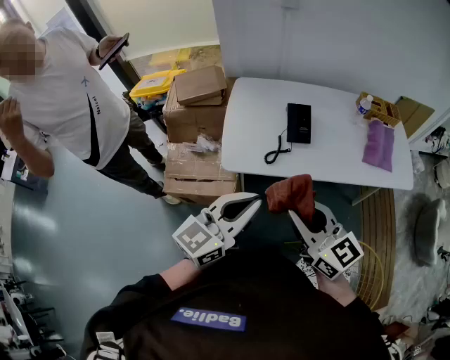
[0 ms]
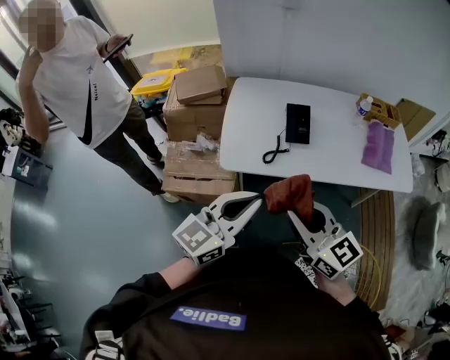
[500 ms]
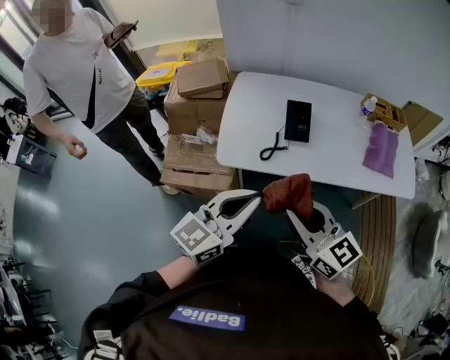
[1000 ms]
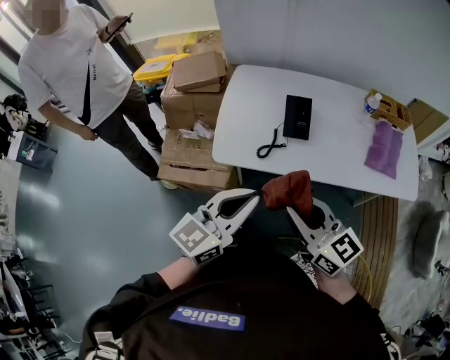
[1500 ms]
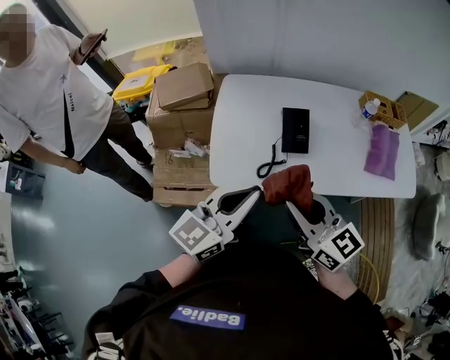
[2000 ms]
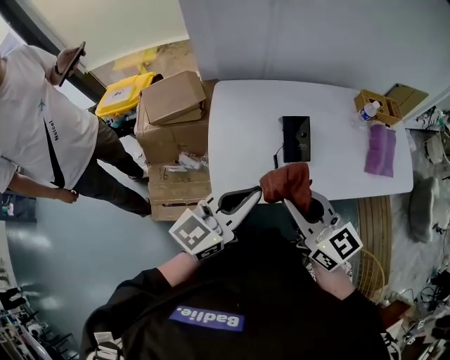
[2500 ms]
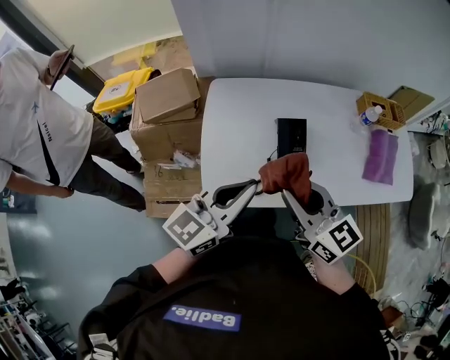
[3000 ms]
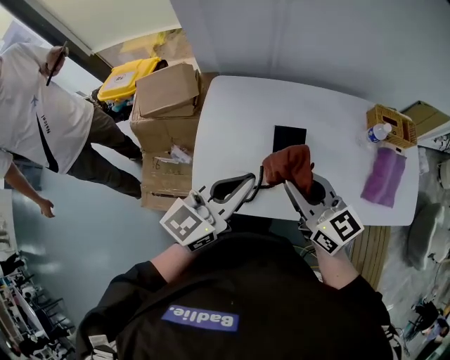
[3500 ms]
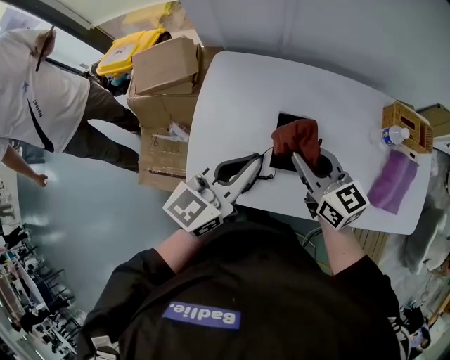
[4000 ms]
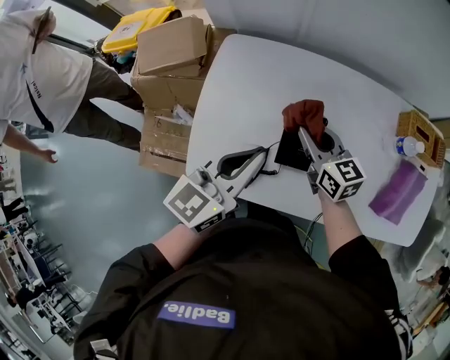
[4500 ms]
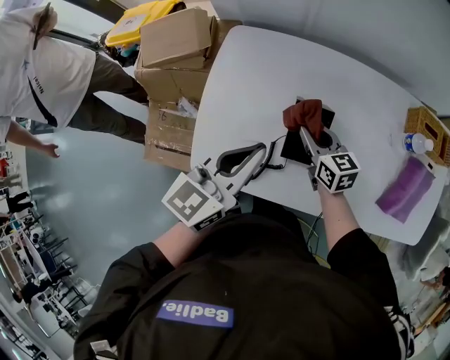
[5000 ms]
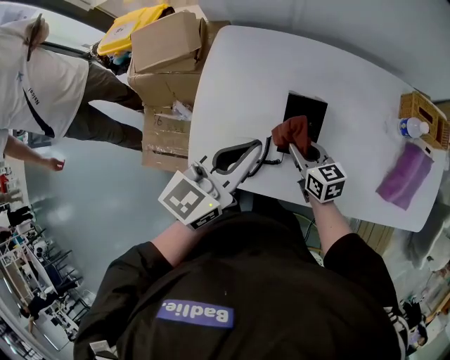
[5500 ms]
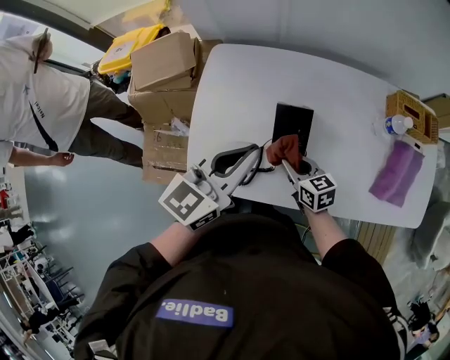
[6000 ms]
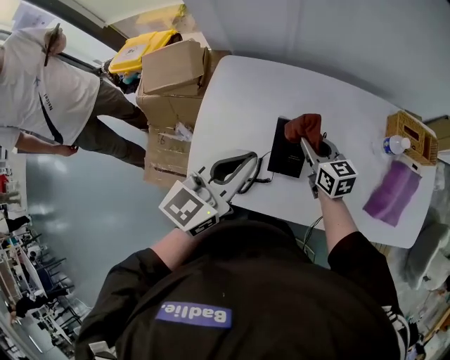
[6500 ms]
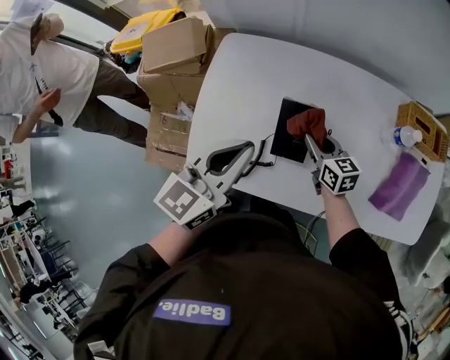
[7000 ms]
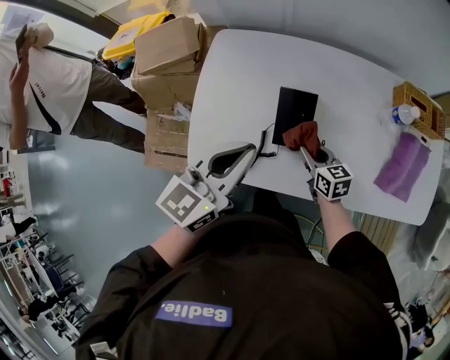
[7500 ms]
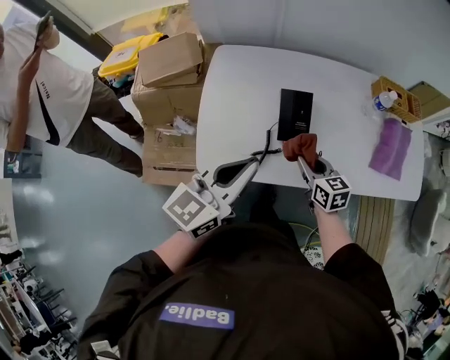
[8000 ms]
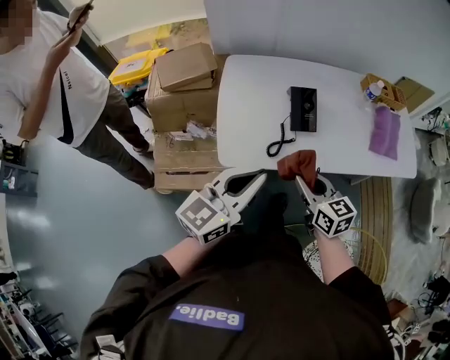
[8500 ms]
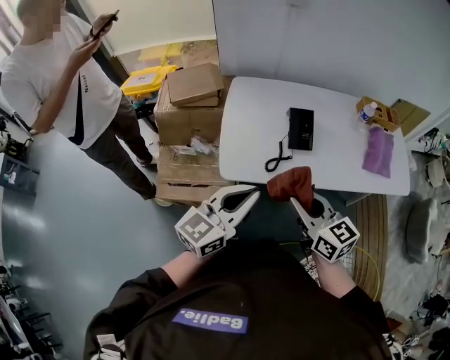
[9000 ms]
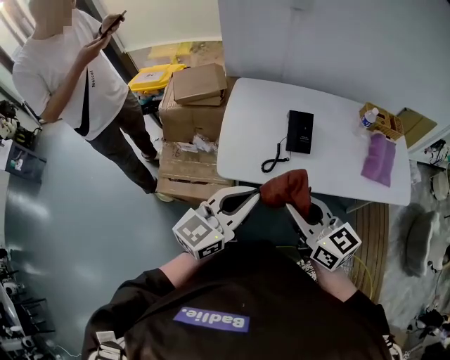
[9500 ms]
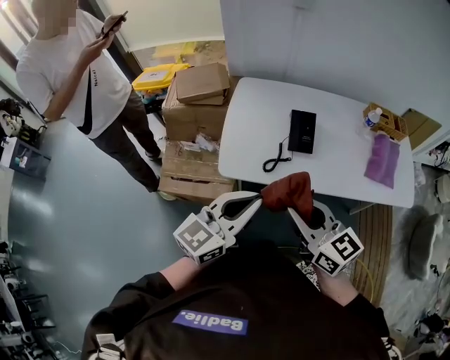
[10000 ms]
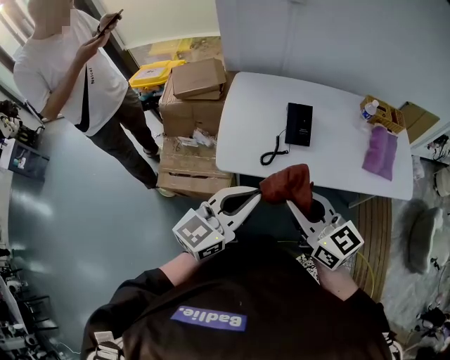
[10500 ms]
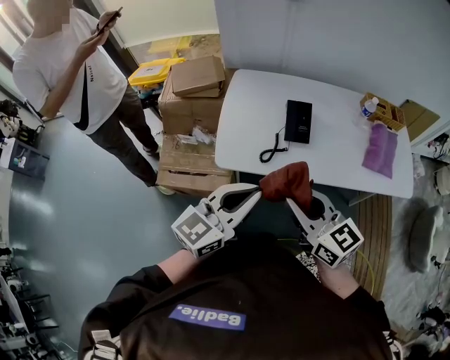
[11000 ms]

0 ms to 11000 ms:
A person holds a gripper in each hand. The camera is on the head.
0 ms to 2000 ms: Both grippers move forward, roughly 15 cm.
2000 ms to 3500 ms: The grippers both shift forward by approximately 20 cm.
3500 ms to 5500 ms: The right gripper shifts some 25 cm downward, and changes its angle by approximately 20 degrees. The left gripper moves downward and forward, roughly 10 cm.
5500 ms to 7500 ms: The right gripper travels to the right by roughly 5 cm, and reaches approximately 10 cm forward, then returns.
7500 ms to 9000 ms: The left gripper heads backward and to the left, covering roughly 25 cm. Meanwhile the right gripper heads backward, upward and to the left, covering roughly 40 cm, and turns by some 20 degrees.
9000 ms to 11000 ms: The left gripper travels to the right by some 5 cm; the right gripper changes place by roughly 5 cm.

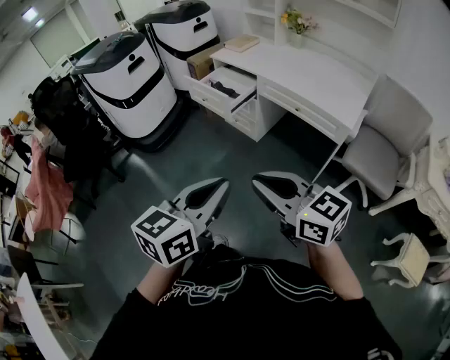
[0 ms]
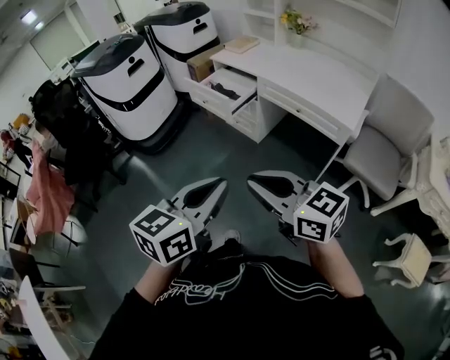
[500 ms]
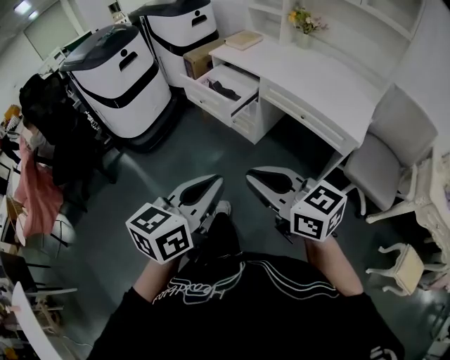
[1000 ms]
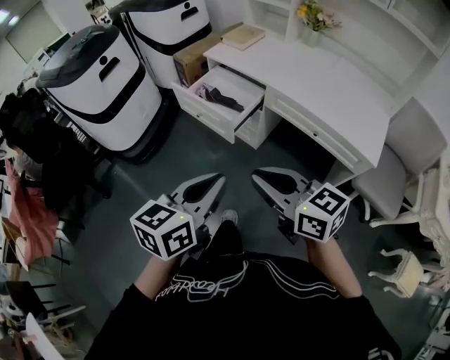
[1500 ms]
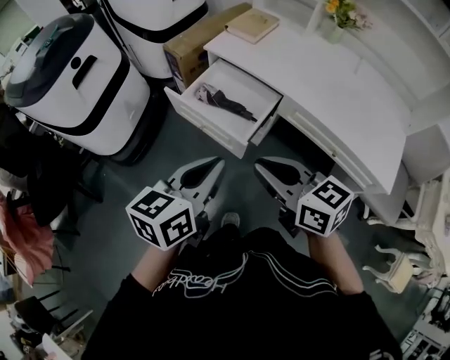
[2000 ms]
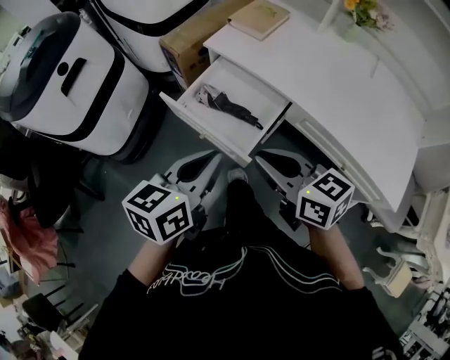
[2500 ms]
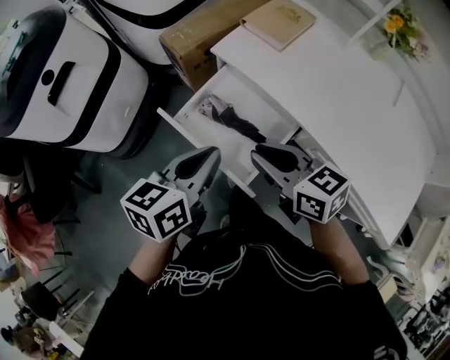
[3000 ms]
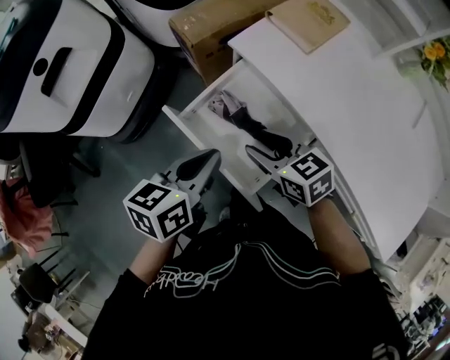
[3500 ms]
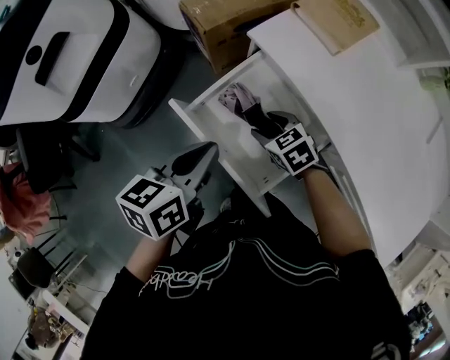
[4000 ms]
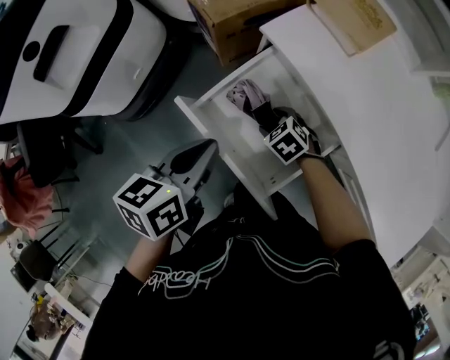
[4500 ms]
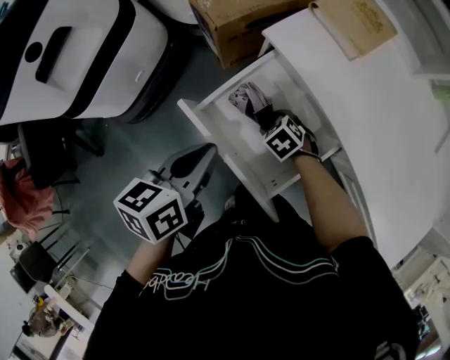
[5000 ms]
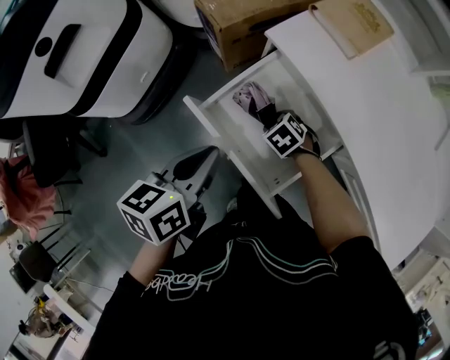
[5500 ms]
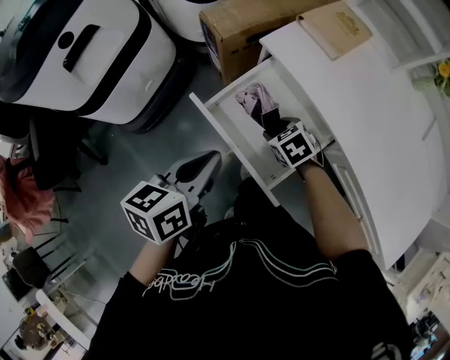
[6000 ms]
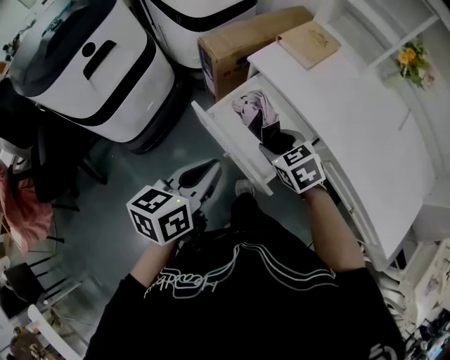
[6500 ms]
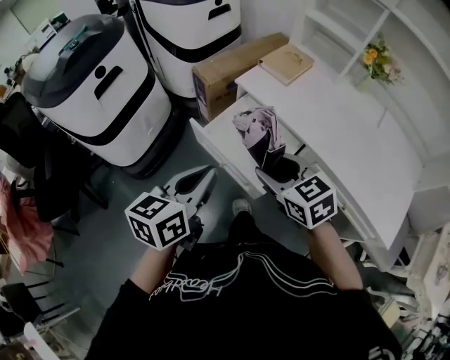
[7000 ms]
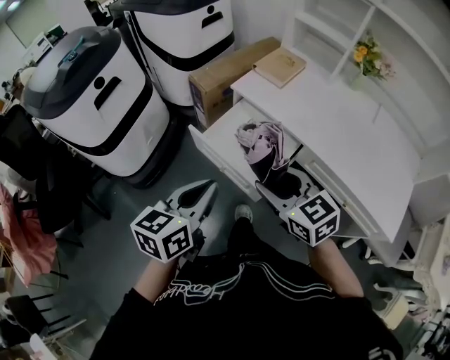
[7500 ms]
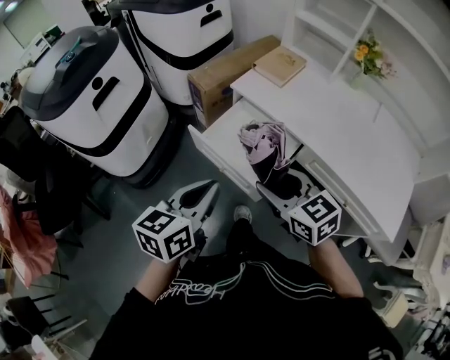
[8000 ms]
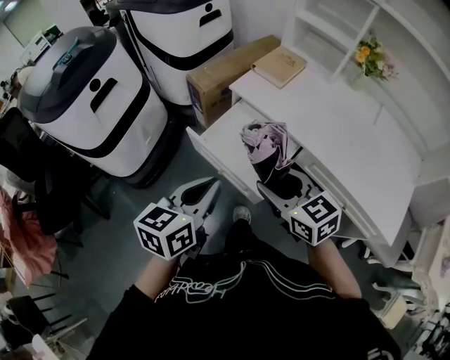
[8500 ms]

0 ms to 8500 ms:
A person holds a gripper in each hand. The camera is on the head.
0 ms to 2000 ms: Both grippers are carried forward, roughly 60 cm.
2000 ms to 4000 ms: Both grippers move forward and downward, about 40 cm. The right gripper angles its fingers downward, by approximately 40 degrees, and opens up. Meanwhile the left gripper changes its angle by roughly 20 degrees.
4000 ms to 6500 ms: The left gripper is displaced backward and upward by approximately 15 cm. The right gripper goes roughly 20 cm upward and backward.
6500 ms to 8500 ms: The left gripper goes some 10 cm upward and backward, while the right gripper goes about 20 cm upward and backward, and swivels approximately 30 degrees.

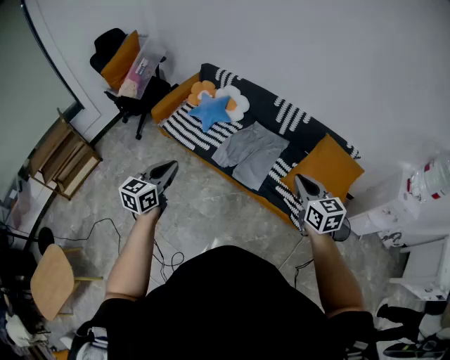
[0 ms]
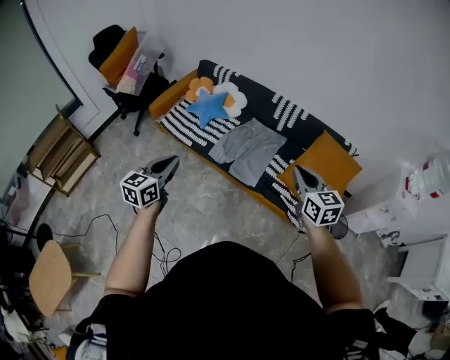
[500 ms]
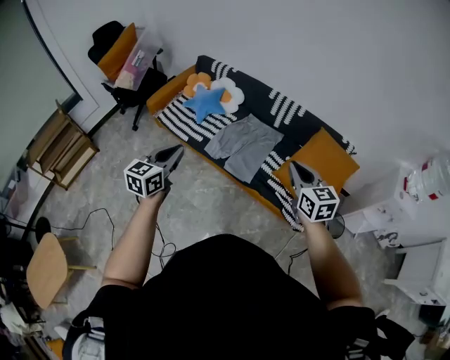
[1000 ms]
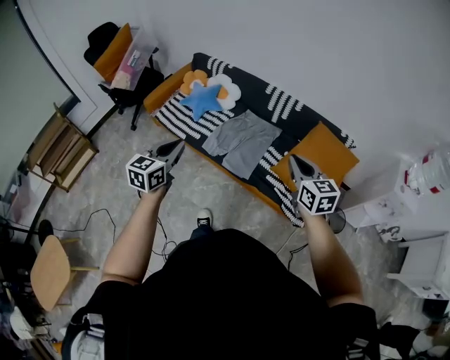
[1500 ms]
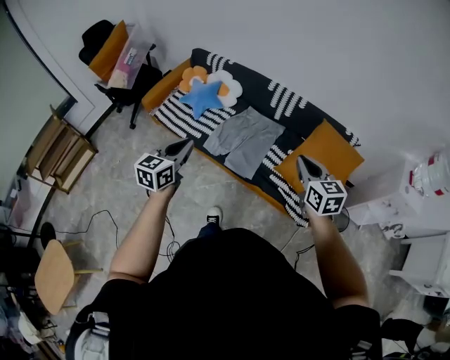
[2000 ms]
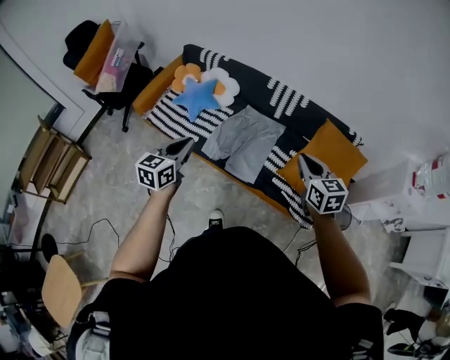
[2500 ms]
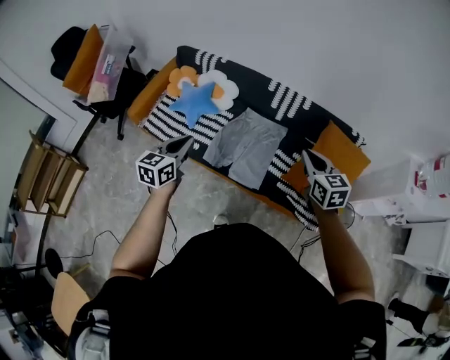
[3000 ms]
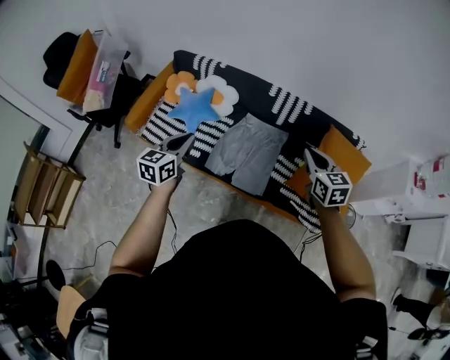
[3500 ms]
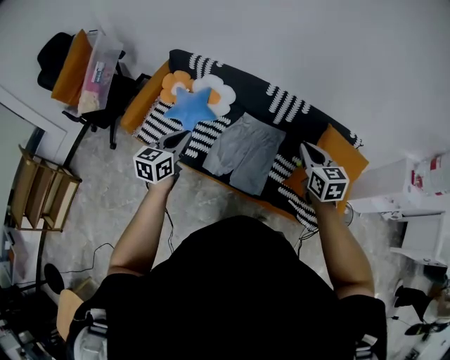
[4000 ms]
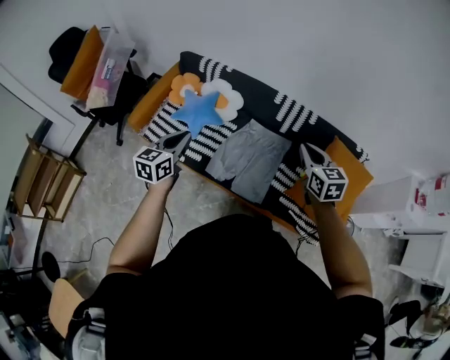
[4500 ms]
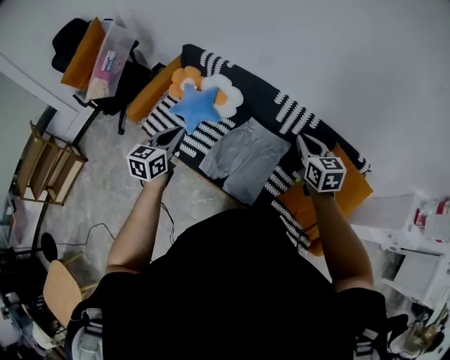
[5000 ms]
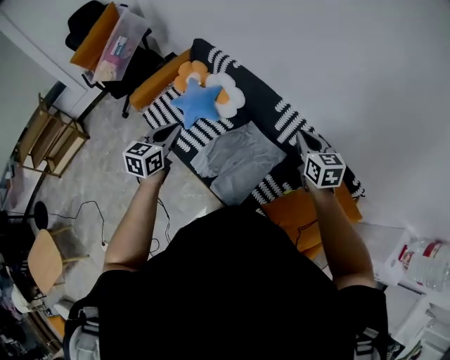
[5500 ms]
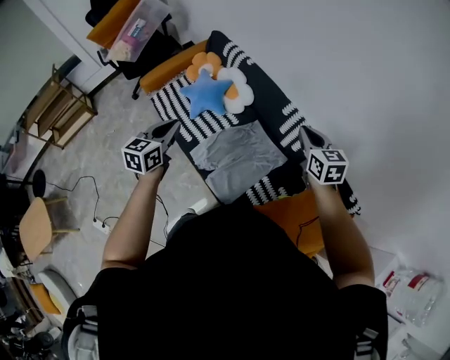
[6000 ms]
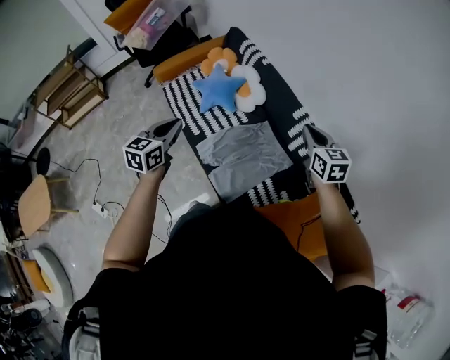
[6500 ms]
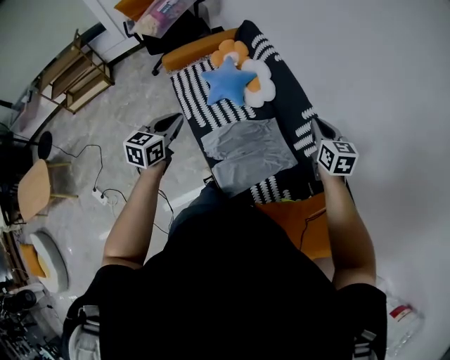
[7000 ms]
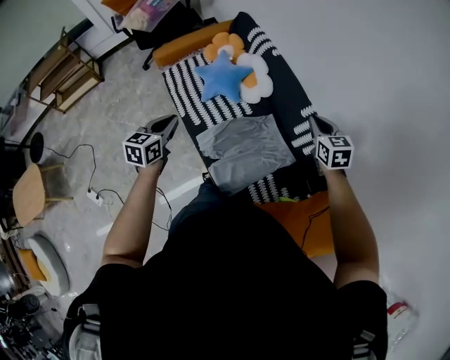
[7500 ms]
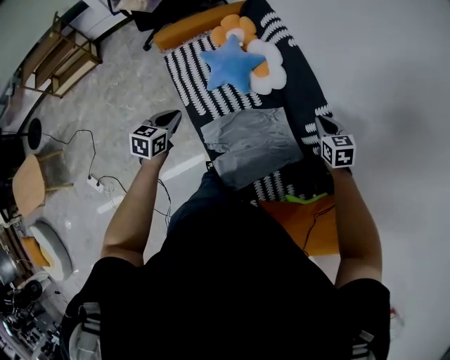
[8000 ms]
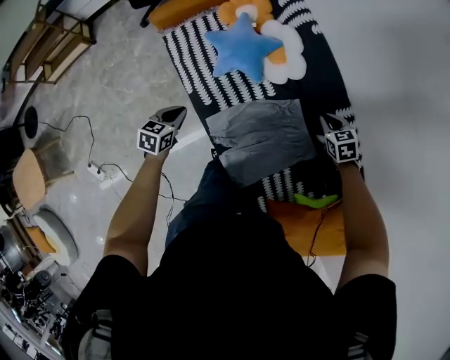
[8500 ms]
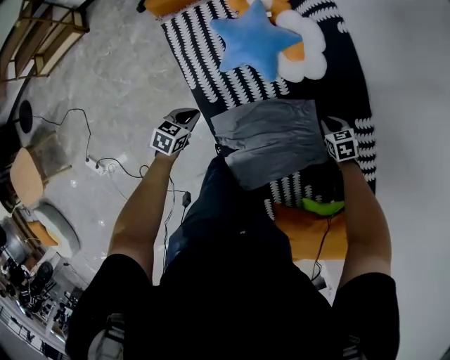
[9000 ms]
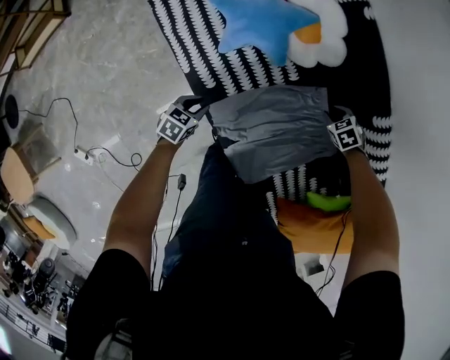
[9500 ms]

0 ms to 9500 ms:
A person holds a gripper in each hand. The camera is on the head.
0 ms to 2000 ms: The grippers both shift to the right and forward by about 15 cm.
2000 ms to 4000 ms: Both grippers move forward and to the left, roughly 30 cm.
4000 ms to 5500 ms: The left gripper goes approximately 15 cm to the right and forward, and changes its angle by about 20 degrees. Meanwhile the right gripper shifts roughly 25 cm forward and to the right.
5500 ms to 7500 ms: The left gripper travels downward and to the left by some 10 cm, and changes its angle by some 20 degrees. The right gripper heads forward and downward, covering some 15 cm, and turns by roughly 20 degrees.
7500 ms to 9500 ms: Both grippers travel together downward, approximately 50 cm. The right gripper tips its fingers downward by about 50 degrees, and opens, while the left gripper turns by about 40 degrees, and opens its fingers.
